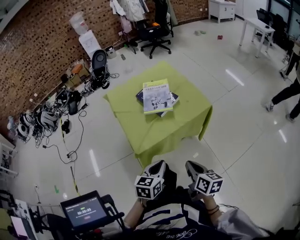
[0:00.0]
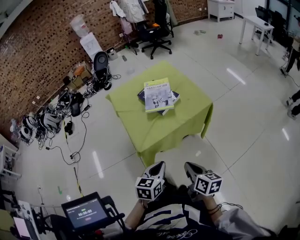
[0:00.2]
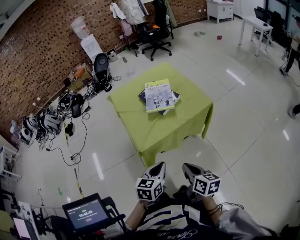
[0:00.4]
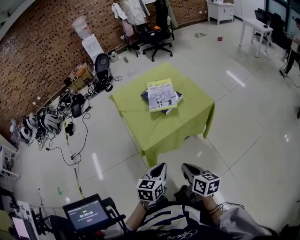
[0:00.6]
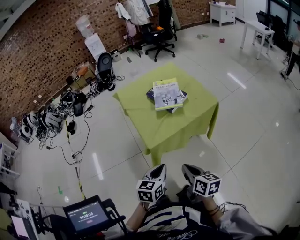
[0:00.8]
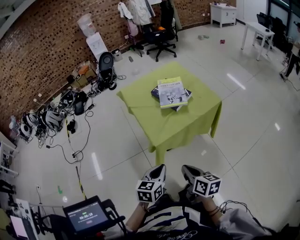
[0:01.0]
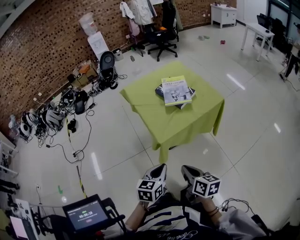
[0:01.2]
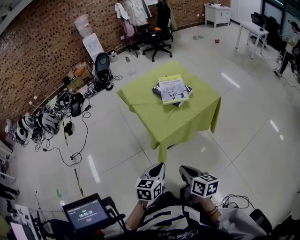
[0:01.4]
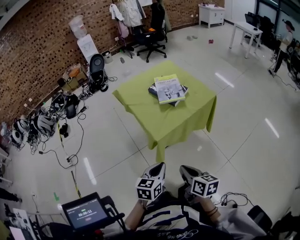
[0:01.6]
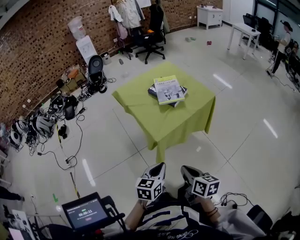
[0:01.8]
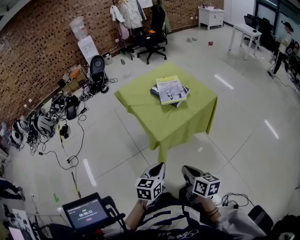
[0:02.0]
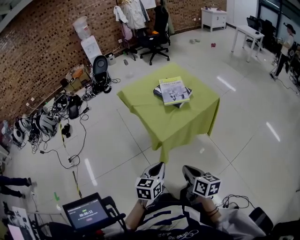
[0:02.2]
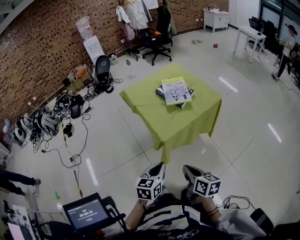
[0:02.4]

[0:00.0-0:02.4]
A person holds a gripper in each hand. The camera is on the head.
0:00.0 to 0:01.2: The grippers both shift to the left and backward by some 20 cm.
0:01.2 to 0:02.4: The grippers make only small movements.

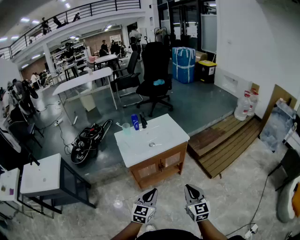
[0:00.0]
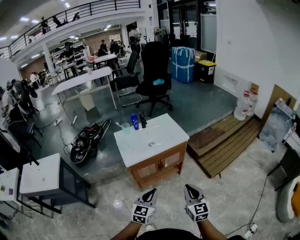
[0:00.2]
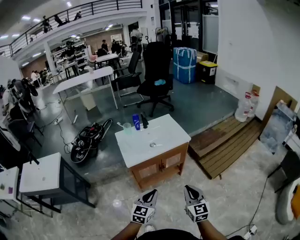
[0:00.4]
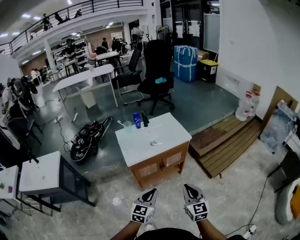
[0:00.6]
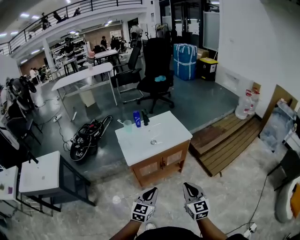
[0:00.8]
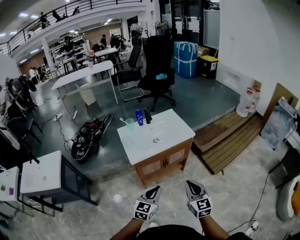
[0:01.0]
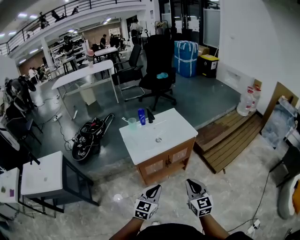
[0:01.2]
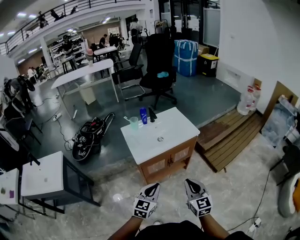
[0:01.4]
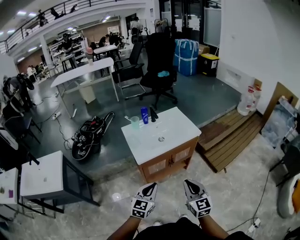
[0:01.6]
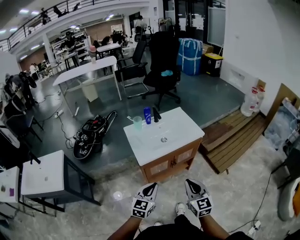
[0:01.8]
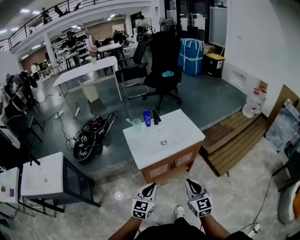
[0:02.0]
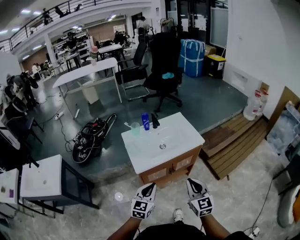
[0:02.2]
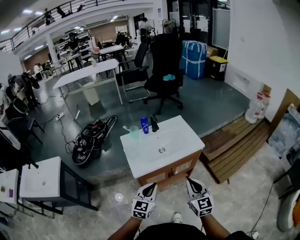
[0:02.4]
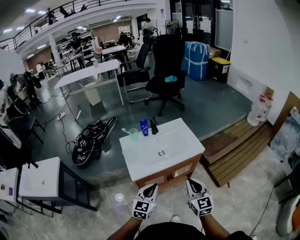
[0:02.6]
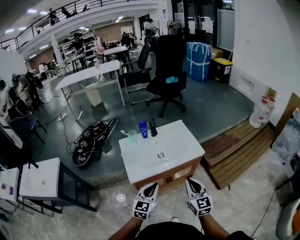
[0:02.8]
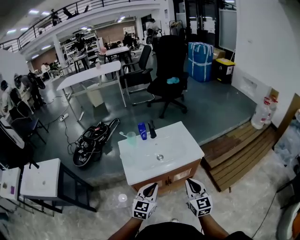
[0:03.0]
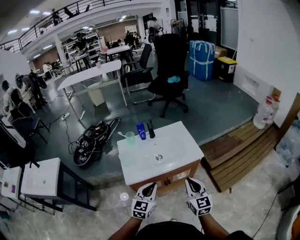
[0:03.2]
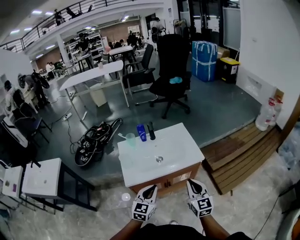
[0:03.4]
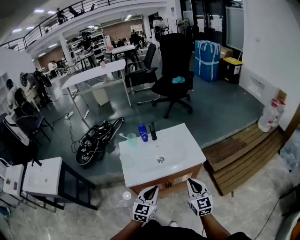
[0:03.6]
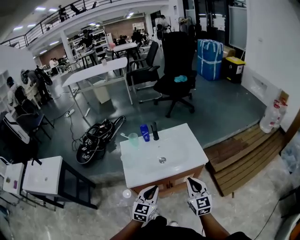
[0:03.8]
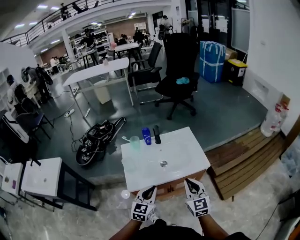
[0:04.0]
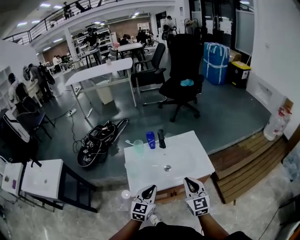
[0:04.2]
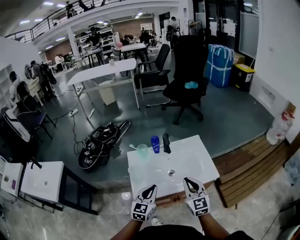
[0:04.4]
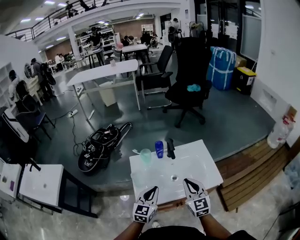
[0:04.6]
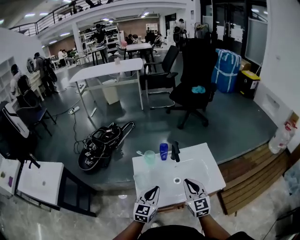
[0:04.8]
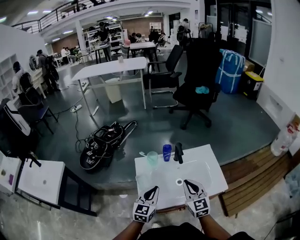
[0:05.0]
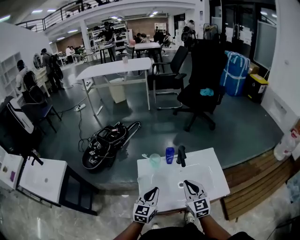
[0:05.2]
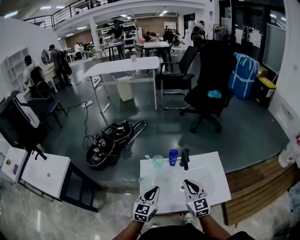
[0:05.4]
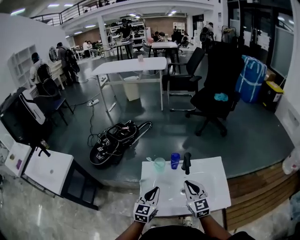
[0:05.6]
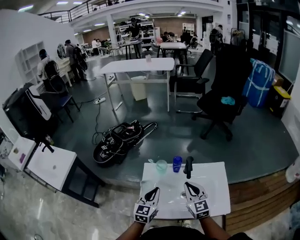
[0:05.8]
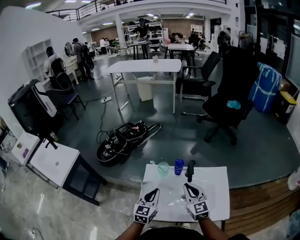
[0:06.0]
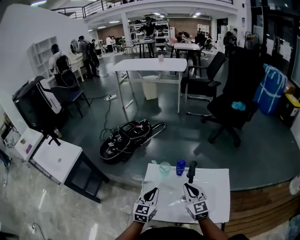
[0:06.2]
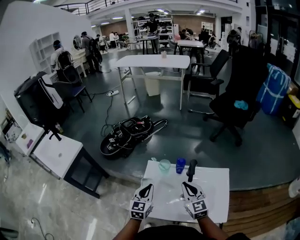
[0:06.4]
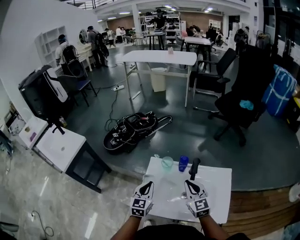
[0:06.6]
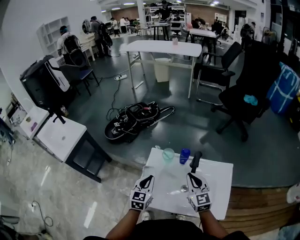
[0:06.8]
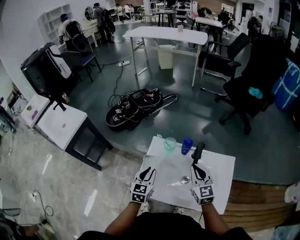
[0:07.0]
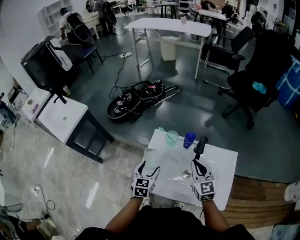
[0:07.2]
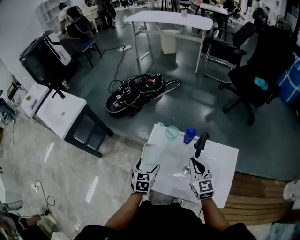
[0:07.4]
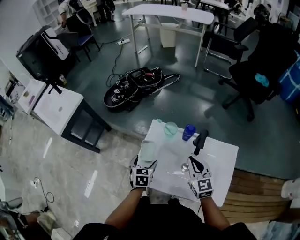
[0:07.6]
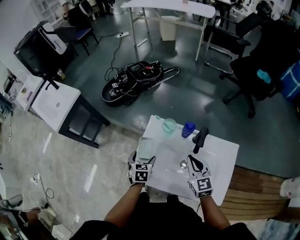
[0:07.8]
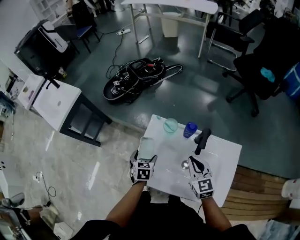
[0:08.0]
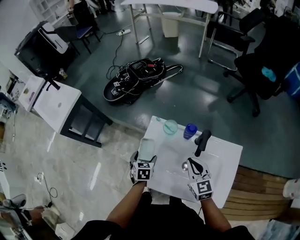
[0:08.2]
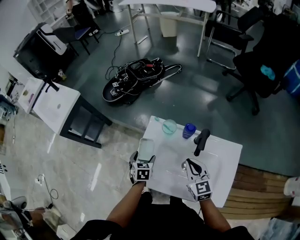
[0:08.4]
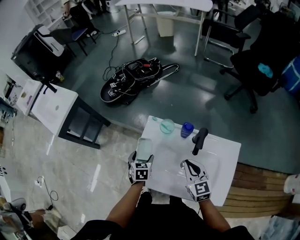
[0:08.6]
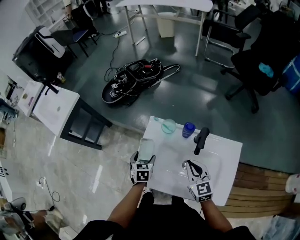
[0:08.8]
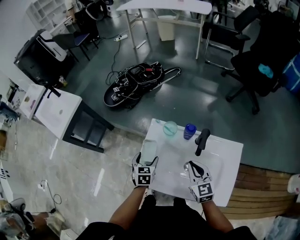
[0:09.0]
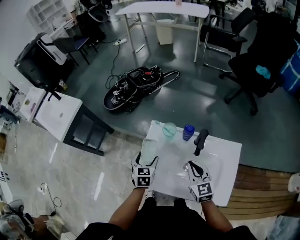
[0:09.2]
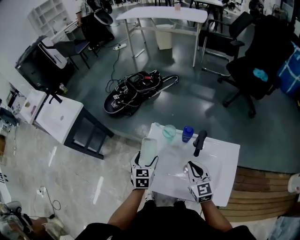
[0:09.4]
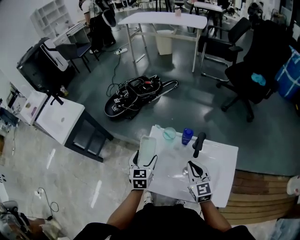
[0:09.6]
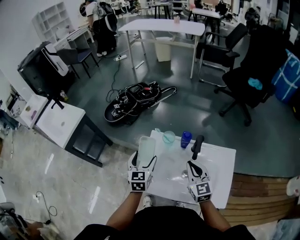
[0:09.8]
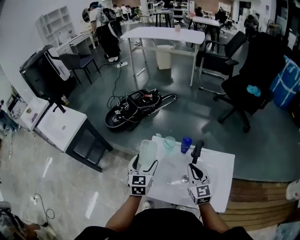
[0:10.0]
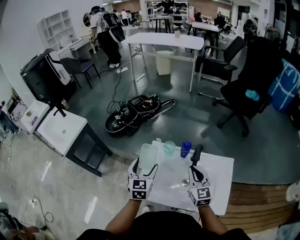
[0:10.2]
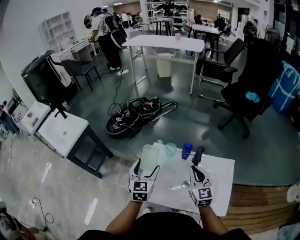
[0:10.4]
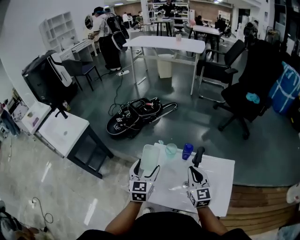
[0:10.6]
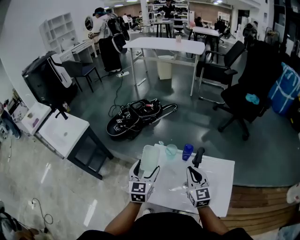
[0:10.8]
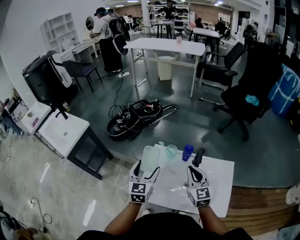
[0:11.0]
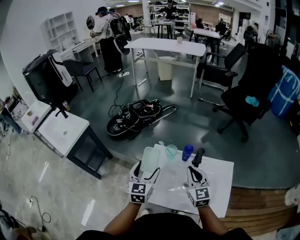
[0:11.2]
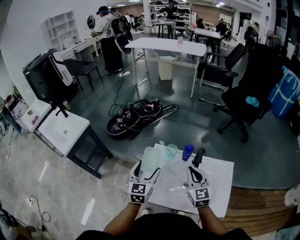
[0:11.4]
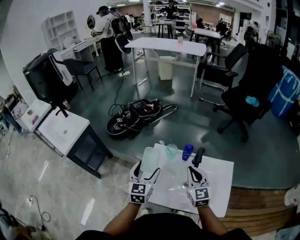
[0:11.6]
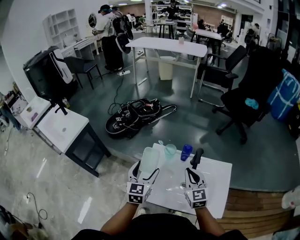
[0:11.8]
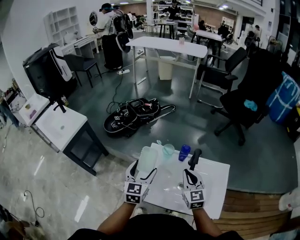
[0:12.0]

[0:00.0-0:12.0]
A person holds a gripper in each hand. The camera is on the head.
0:00.0 to 0:01.6: Both grippers travel together to the left, approximately 10 cm.
0:01.6 to 0:03.0: The grippers both shift forward and to the right by roughly 20 cm.
0:03.0 to 0:04.4: The grippers both shift forward and to the left by some 15 cm.
0:04.4 to 0:06.0: Both grippers travel together forward and to the left, roughly 15 cm. The right gripper rotates roughly 20 degrees; the left gripper rotates about 20 degrees.
0:06.0 to 0:07.6: The right gripper is displaced downward by about 5 cm; the left gripper heads downward and to the left, covering some 15 cm, swivels some 40 degrees, and opens its fingers.
0:07.6 to 0:09.0: The grippers move only a little.
0:09.0 to 0:10.4: The left gripper shifts approximately 20 cm upward, and changes its angle by about 30 degrees. The right gripper heads upward, covering approximately 10 cm.
0:10.4 to 0:12.0: The grippers move only a little.

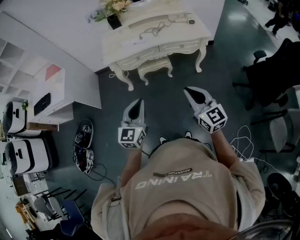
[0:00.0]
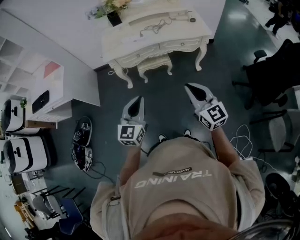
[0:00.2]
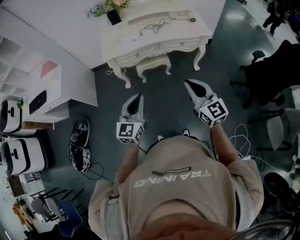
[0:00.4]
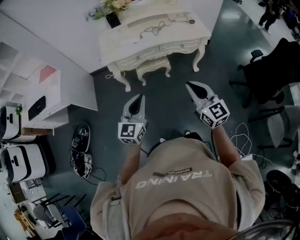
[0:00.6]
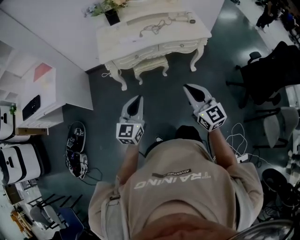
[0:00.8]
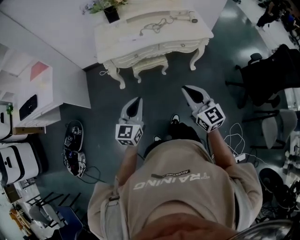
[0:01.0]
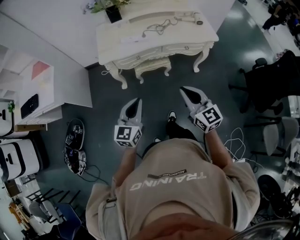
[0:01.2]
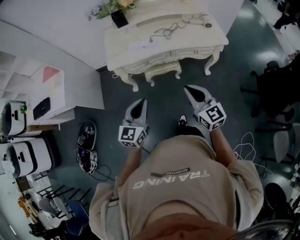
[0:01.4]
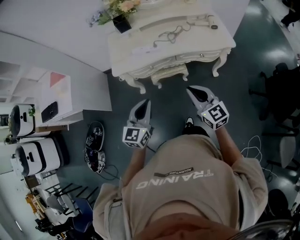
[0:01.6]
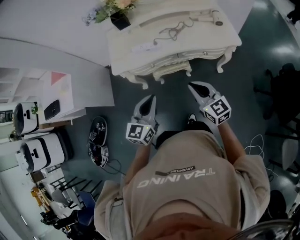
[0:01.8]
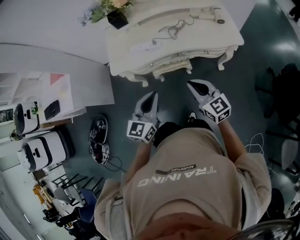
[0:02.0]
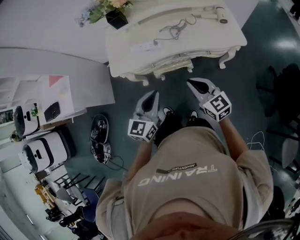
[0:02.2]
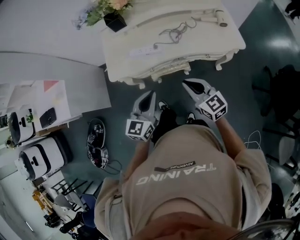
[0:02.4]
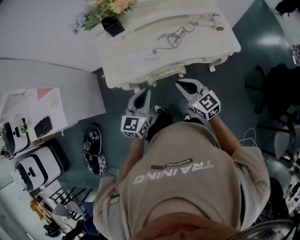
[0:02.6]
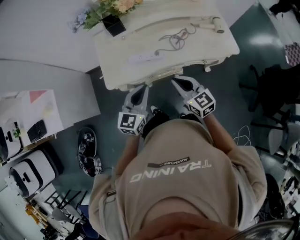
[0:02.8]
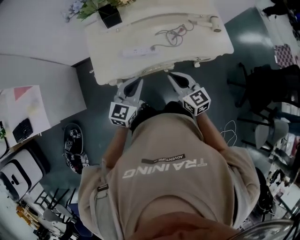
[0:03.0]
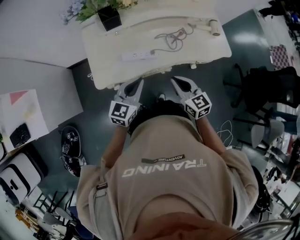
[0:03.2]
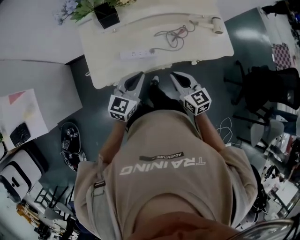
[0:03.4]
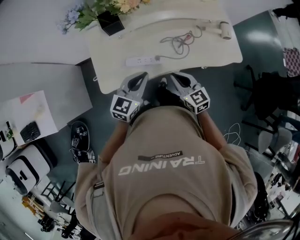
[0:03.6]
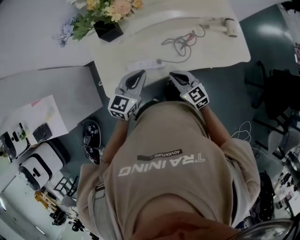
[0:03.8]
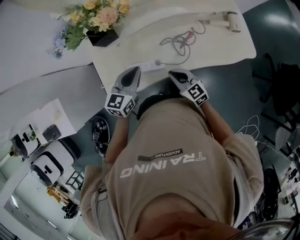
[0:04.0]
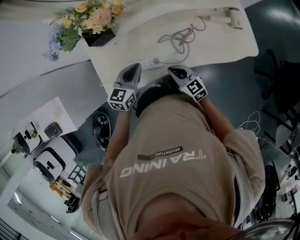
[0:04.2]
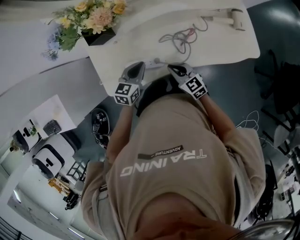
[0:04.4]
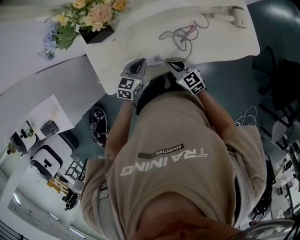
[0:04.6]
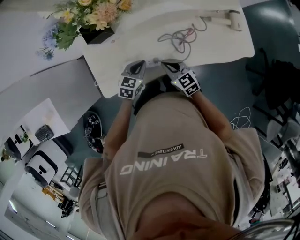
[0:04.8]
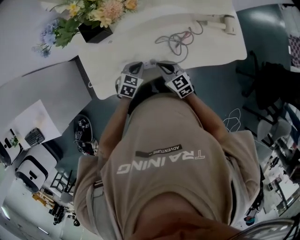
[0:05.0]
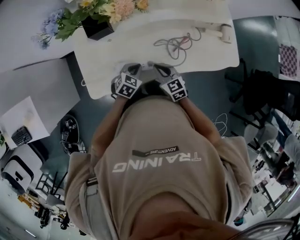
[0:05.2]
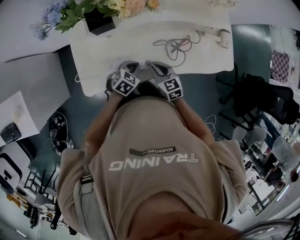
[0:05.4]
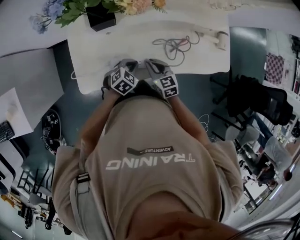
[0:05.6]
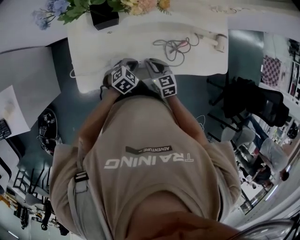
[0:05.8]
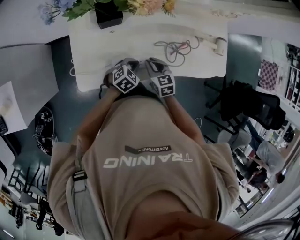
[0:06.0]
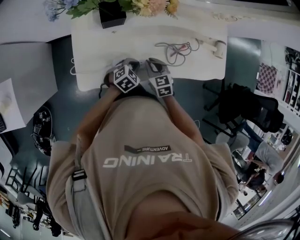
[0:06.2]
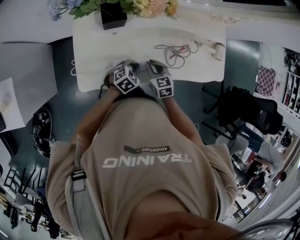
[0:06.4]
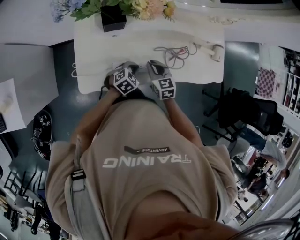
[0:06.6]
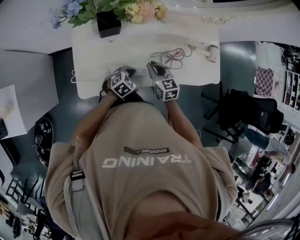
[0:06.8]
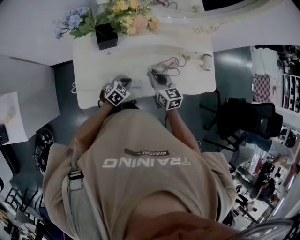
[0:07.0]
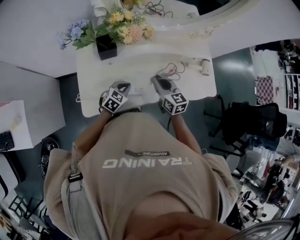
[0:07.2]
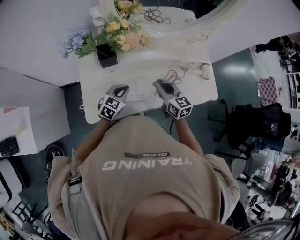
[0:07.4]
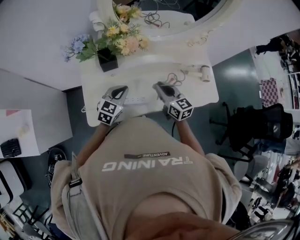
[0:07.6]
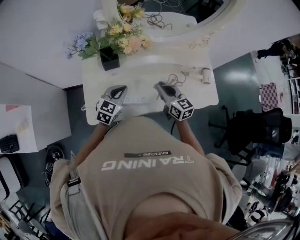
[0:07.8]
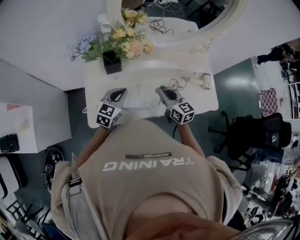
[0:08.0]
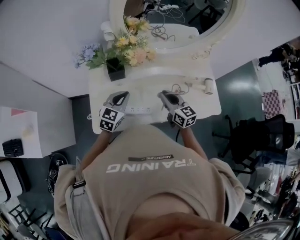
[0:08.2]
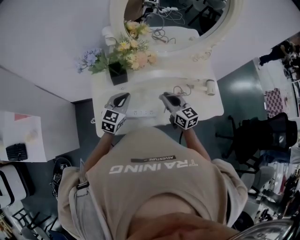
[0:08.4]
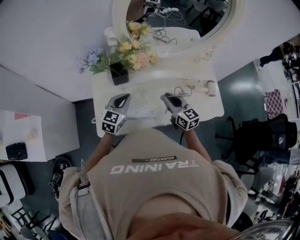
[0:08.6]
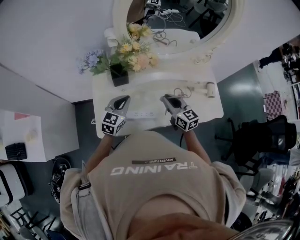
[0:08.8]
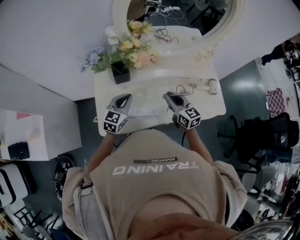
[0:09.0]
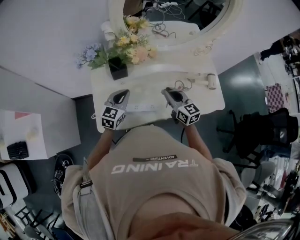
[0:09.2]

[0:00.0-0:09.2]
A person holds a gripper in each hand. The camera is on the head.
0:00.0 to 0:01.6: Both grippers move forward, some 25 cm.
0:01.6 to 0:03.0: The left gripper shifts roughly 30 cm forward, while the right gripper shifts approximately 30 cm forward and to the left.
0:03.0 to 0:04.6: Both grippers travel together forward and downward, some 25 cm. The left gripper turns by roughly 30 degrees.
0:04.6 to 0:06.2: The left gripper rotates roughly 20 degrees; the right gripper is displaced to the left by about 10 cm, and turns by some 30 degrees.
0:06.2 to 0:07.6: The grippers both shift upward by approximately 20 cm. The left gripper rotates some 30 degrees. The right gripper changes its angle by roughly 30 degrees.
0:07.6 to 0:09.2: The left gripper changes place by about 5 cm.
